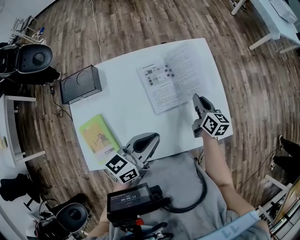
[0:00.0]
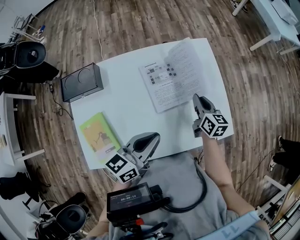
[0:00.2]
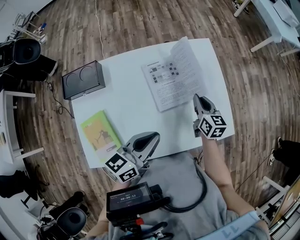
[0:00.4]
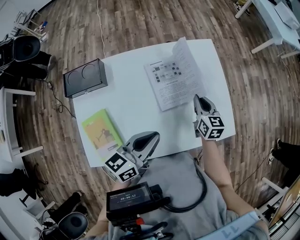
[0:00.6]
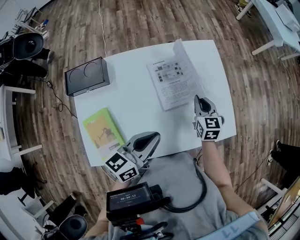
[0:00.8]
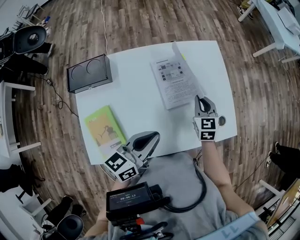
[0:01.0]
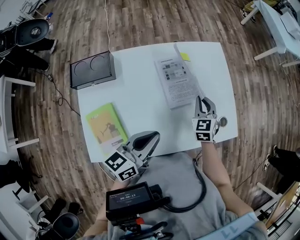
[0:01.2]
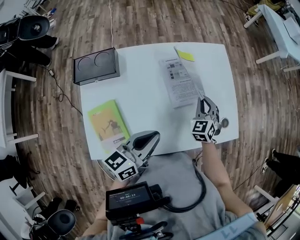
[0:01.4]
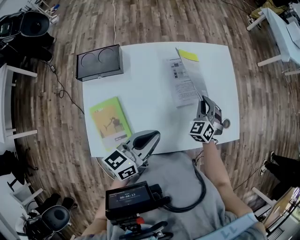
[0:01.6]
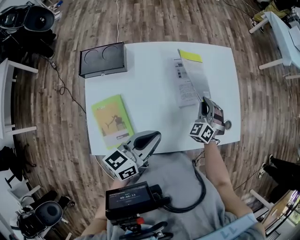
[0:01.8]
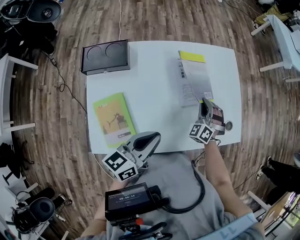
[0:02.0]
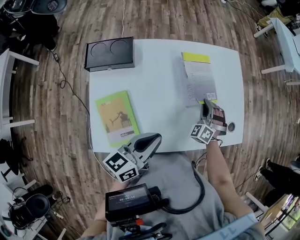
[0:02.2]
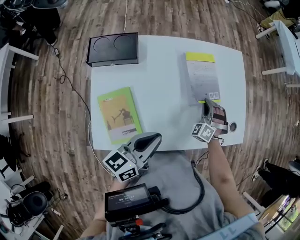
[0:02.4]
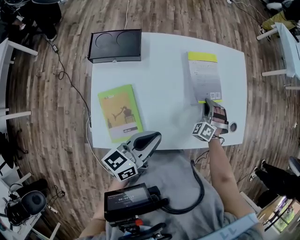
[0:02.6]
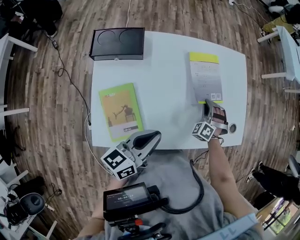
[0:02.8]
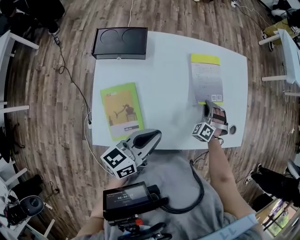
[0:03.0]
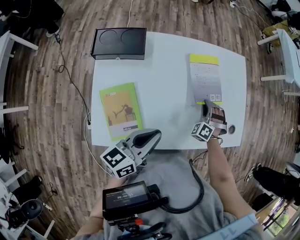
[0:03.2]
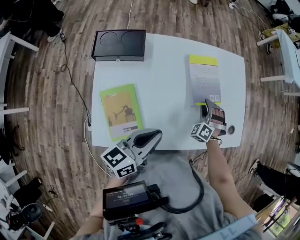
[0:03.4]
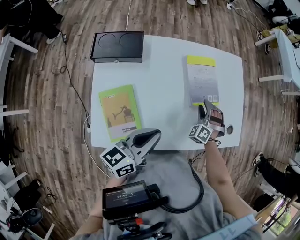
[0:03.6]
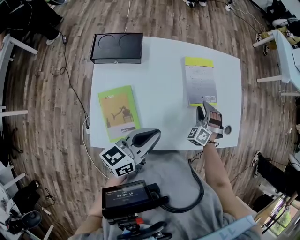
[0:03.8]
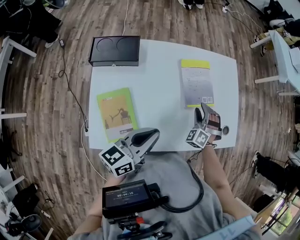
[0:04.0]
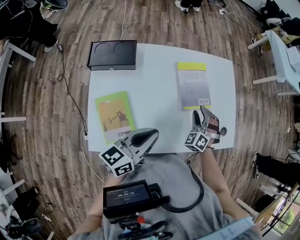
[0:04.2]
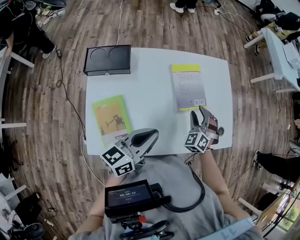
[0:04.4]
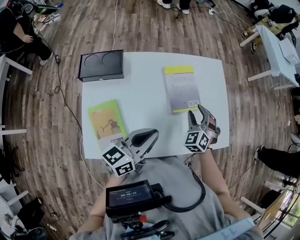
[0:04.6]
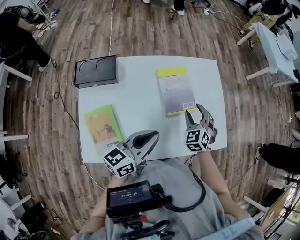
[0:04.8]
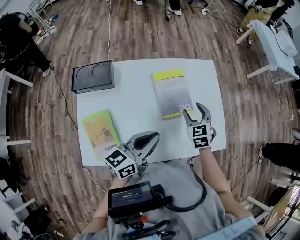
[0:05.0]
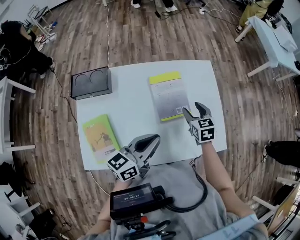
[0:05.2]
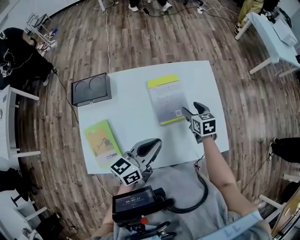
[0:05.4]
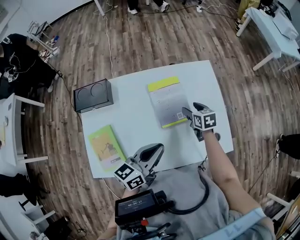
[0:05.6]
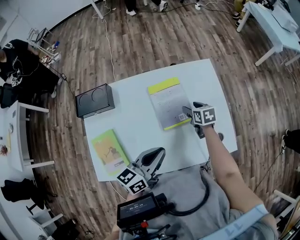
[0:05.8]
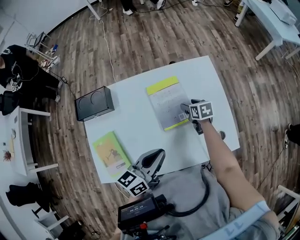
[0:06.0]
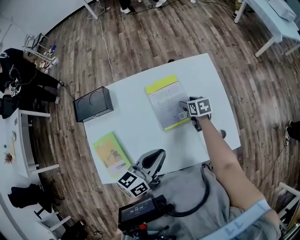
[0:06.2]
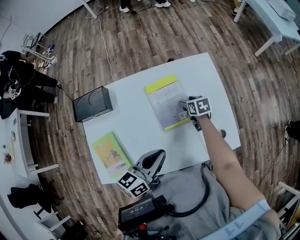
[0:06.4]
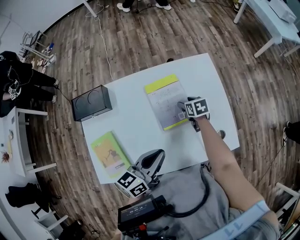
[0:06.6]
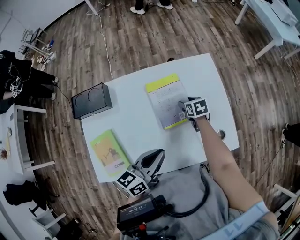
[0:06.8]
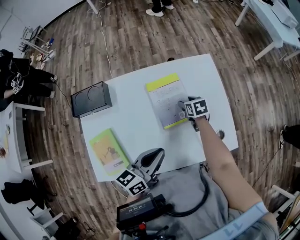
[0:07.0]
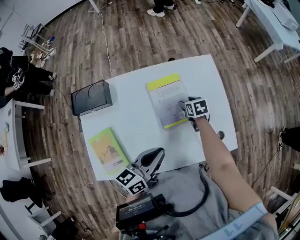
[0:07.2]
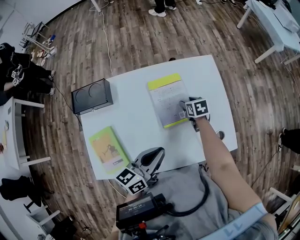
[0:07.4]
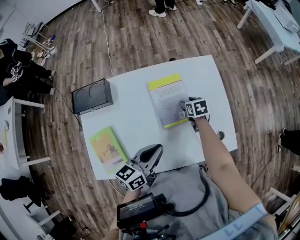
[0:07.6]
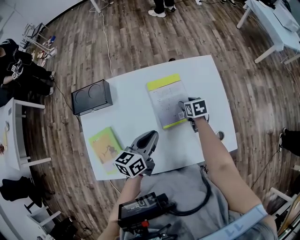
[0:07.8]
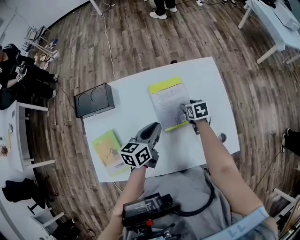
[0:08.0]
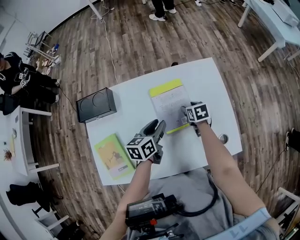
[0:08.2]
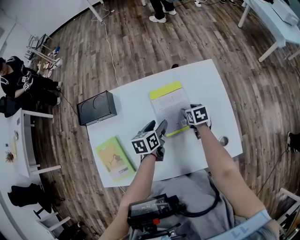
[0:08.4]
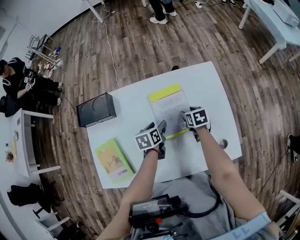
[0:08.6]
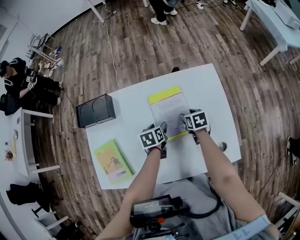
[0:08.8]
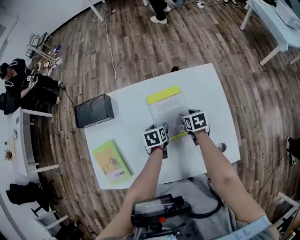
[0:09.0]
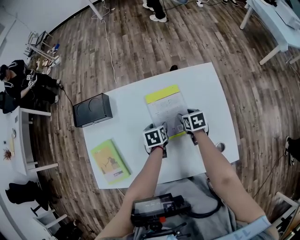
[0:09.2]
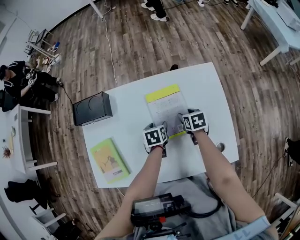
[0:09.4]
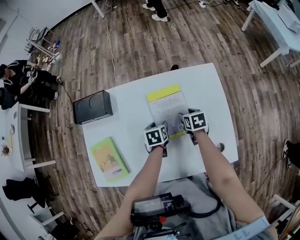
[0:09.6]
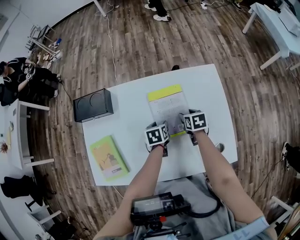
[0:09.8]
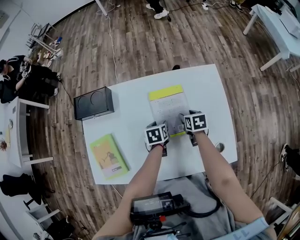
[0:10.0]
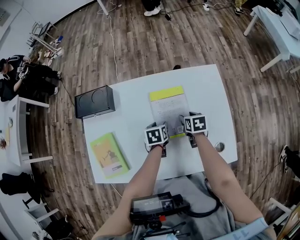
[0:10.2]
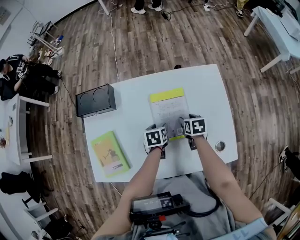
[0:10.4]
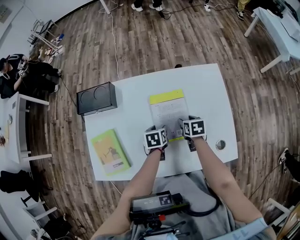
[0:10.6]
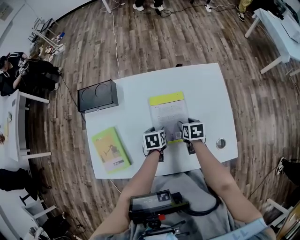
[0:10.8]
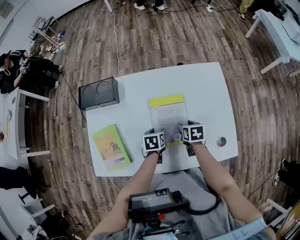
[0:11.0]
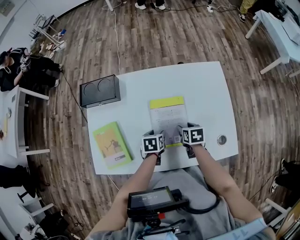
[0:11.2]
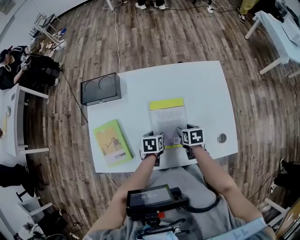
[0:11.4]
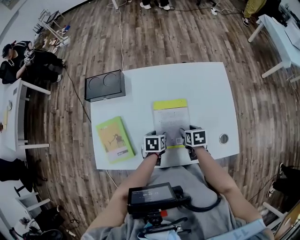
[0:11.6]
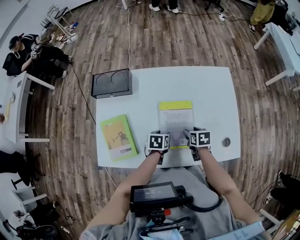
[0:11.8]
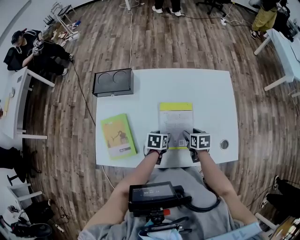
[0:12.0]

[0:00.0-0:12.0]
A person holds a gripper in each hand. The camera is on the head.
0:00.0 to 0:01.6: The right gripper goes approximately 5 cm to the left, and rotates around the line of its fingers by some 80 degrees, counterclockwise from behind. The left gripper moves to the left and backward, about 10 cm.
0:01.6 to 0:03.0: The left gripper travels to the left by some 5 cm; the right gripper goes about 10 cm downward, and changes its angle by approximately 40 degrees.
0:03.0 to 0:04.4: The right gripper heads upward, covering about 10 cm, swivels some 20 degrees, and opens up. Meanwhile the left gripper shifts by about 5 cm.
0:04.4 to 0:06.0: The left gripper shifts approximately 10 cm to the right and forward, while the right gripper goes approximately 15 cm forward and downward, and rolls clockwise, seen from behind, by about 70 degrees.
0:06.0 to 0:07.6: There are only small adjustments of the grippers.
0:07.6 to 0:09.0: The left gripper shifts some 25 cm downward and forward, angles its fingers downward, by approximately 40 degrees, and opens up.
0:09.0 to 0:10.4: There are only small adjustments of the grippers.
0:10.4 to 0:12.0: Both grippers move backward, roughly 10 cm.

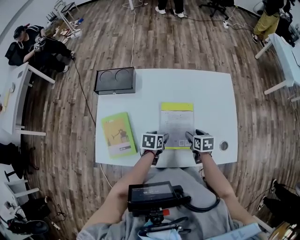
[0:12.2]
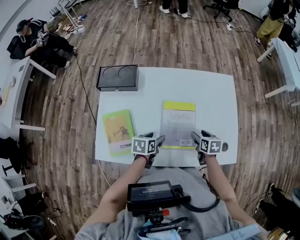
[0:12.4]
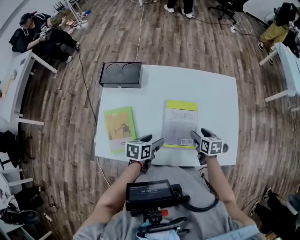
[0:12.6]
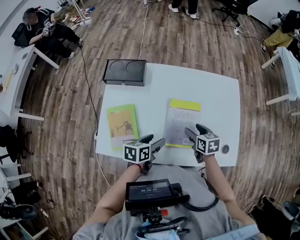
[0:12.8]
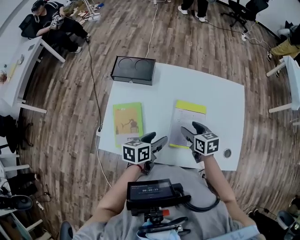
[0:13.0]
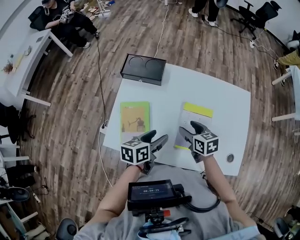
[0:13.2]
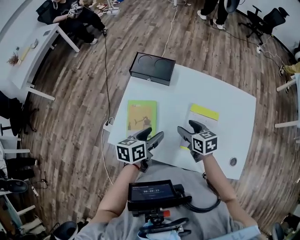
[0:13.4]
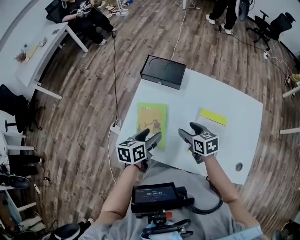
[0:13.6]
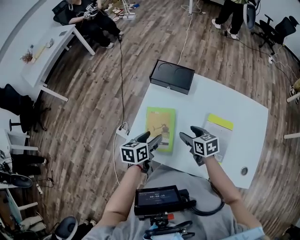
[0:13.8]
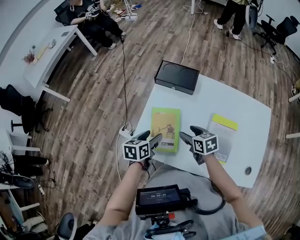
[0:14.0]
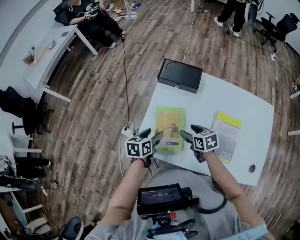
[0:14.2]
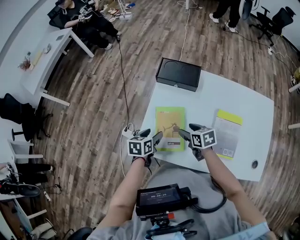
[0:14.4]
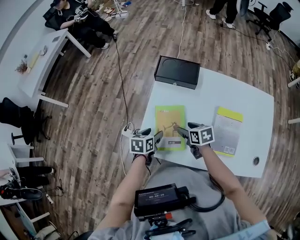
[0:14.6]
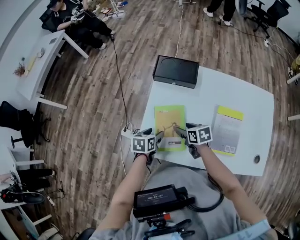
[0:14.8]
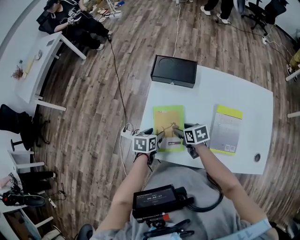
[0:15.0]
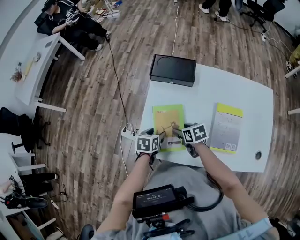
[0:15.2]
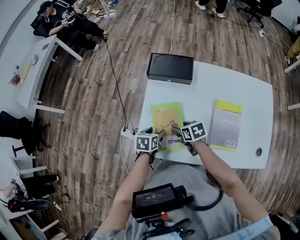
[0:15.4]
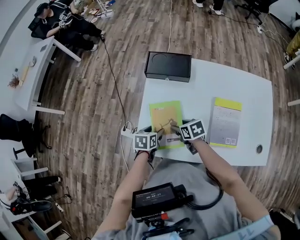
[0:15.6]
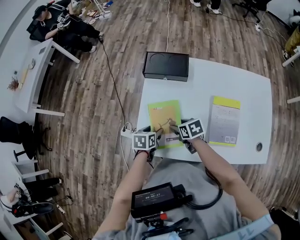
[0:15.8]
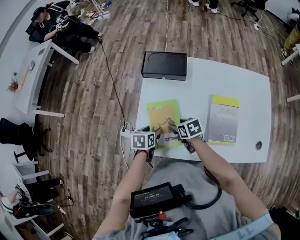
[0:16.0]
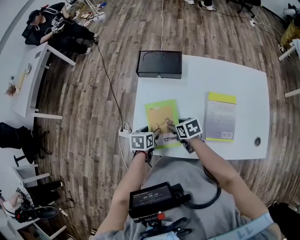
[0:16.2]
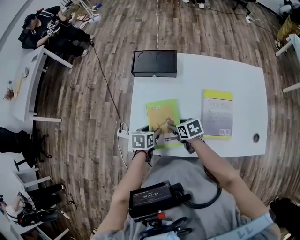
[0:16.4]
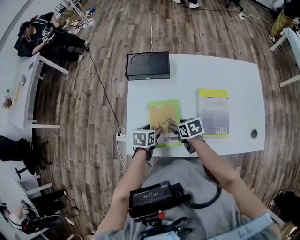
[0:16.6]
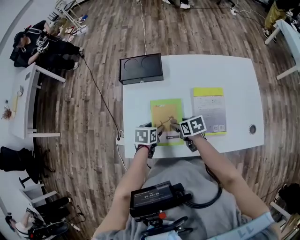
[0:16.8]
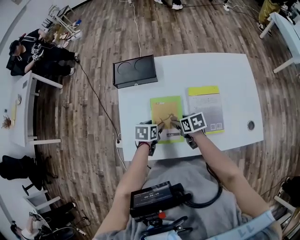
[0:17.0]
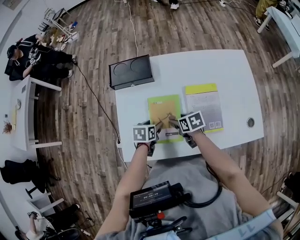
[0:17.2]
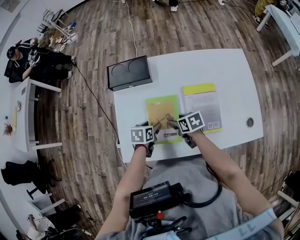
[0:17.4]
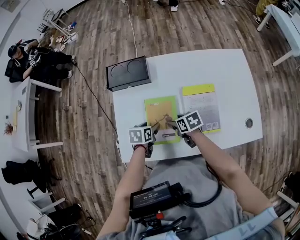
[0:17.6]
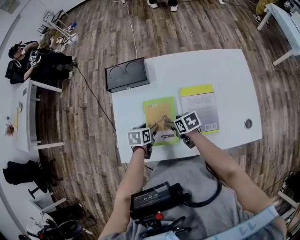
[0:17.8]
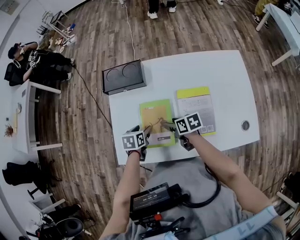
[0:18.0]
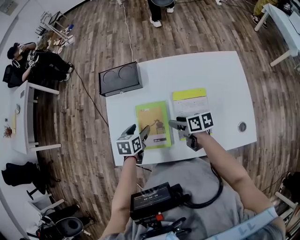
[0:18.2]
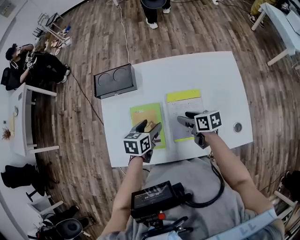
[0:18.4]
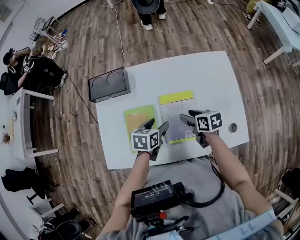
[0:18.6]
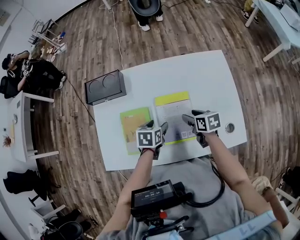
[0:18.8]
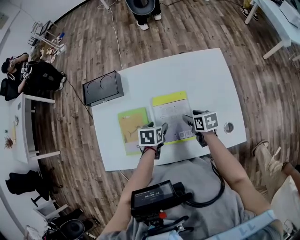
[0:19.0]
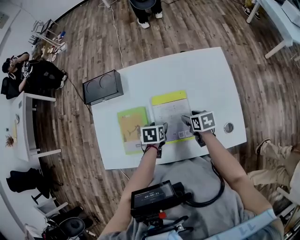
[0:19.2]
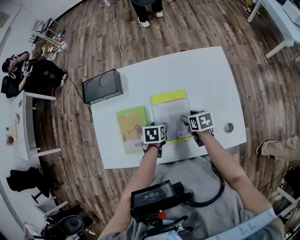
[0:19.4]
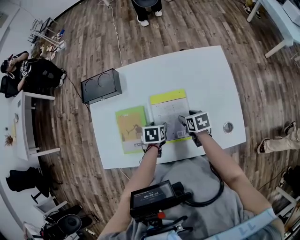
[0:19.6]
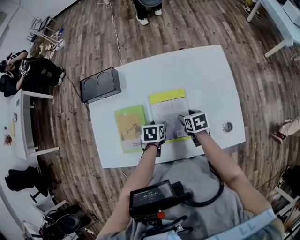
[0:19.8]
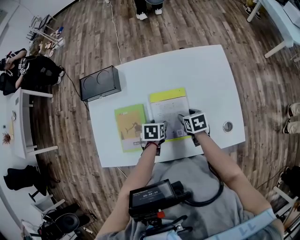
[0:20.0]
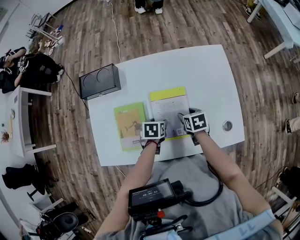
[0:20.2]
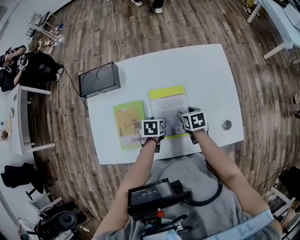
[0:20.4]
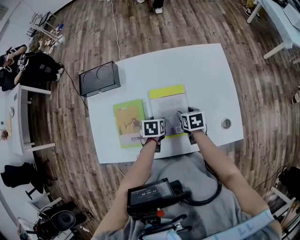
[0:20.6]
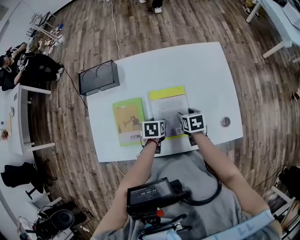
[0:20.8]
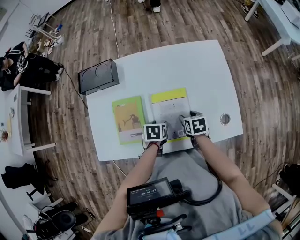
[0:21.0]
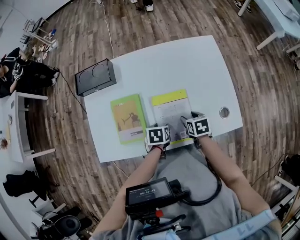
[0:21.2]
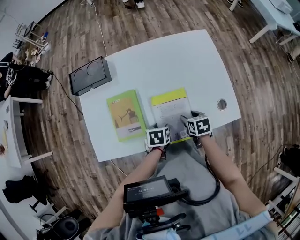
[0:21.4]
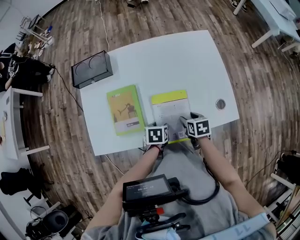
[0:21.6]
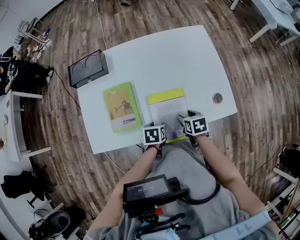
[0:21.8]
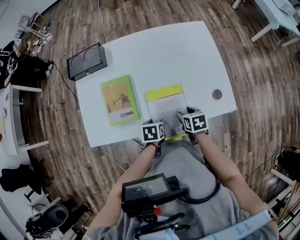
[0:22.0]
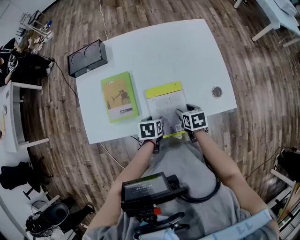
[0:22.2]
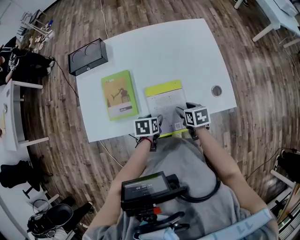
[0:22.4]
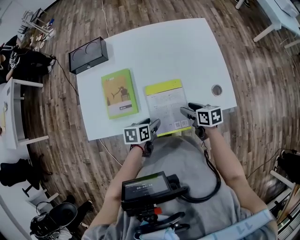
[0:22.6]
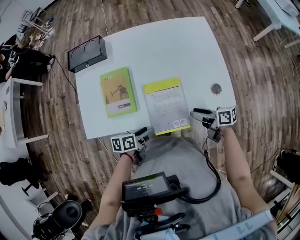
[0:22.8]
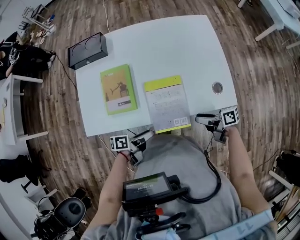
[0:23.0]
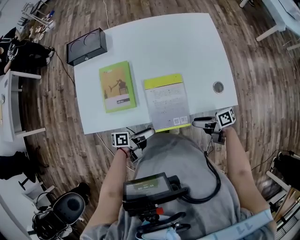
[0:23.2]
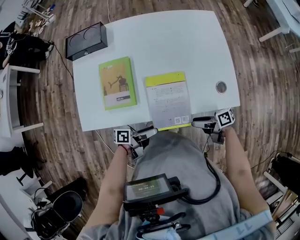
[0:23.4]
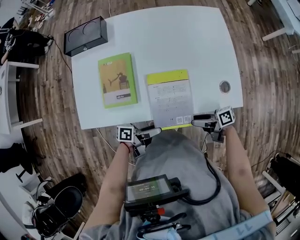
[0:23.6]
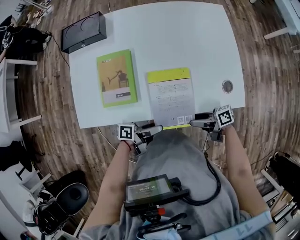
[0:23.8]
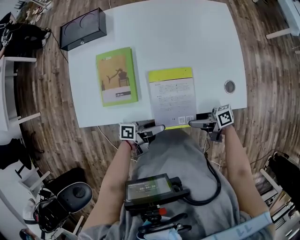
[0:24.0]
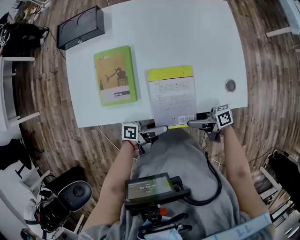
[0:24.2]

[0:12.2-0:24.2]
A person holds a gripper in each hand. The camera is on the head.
0:12.2 to 0:13.8: The right gripper changes place by some 30 cm, and changes its angle by about 40 degrees; the left gripper moves about 25 cm, and rotates approximately 30 degrees.
0:13.8 to 0:15.2: The left gripper shifts about 10 cm downward, and turns by about 20 degrees; the right gripper is displaced downward and to the left by some 10 cm.
0:15.2 to 0:16.6: The two grippers go about 5 cm to the right.
0:16.6 to 0:18.2: Both grippers move to the right and upward, some 10 cm. The right gripper rotates roughly 30 degrees.
0:18.2 to 0:19.8: The grippers both shift to the right by roughly 20 cm. The right gripper rotates about 30 degrees.
0:19.8 to 0:21.2: Both grippers travel together backward, approximately 10 cm.
0:21.2 to 0:22.6: Both grippers move backward, some 10 cm. The right gripper turns by roughly 20 degrees.
0:22.6 to 0:24.2: The right gripper moves about 10 cm, and tilts its fingers roughly 30 degrees upward, while the left gripper changes place by approximately 10 cm, and points its fingers about 50 degrees further upward.
